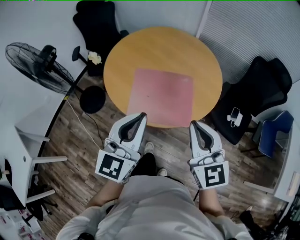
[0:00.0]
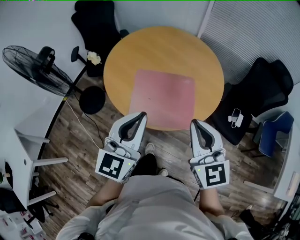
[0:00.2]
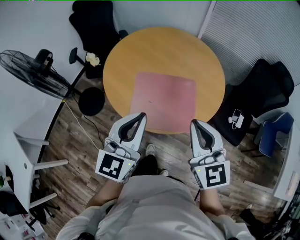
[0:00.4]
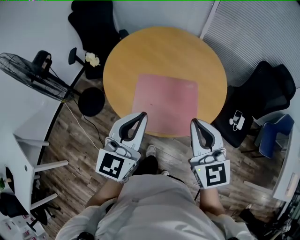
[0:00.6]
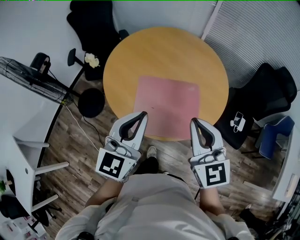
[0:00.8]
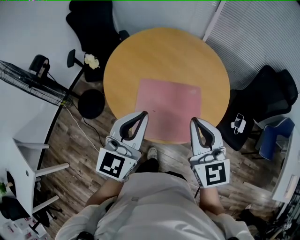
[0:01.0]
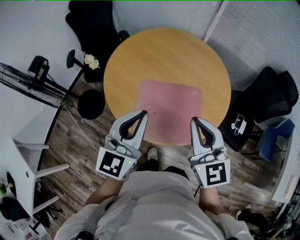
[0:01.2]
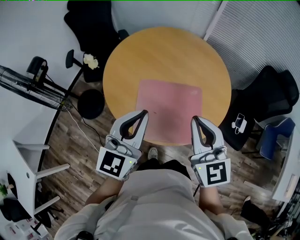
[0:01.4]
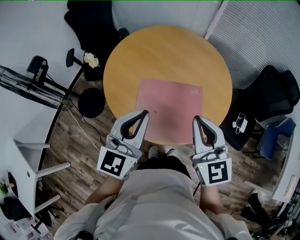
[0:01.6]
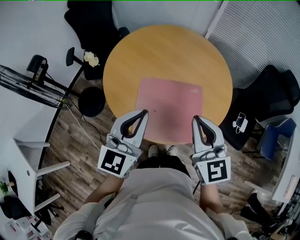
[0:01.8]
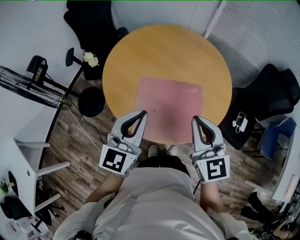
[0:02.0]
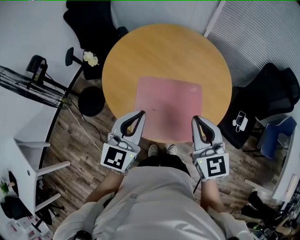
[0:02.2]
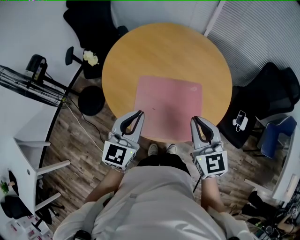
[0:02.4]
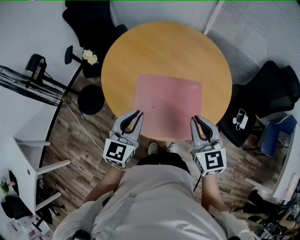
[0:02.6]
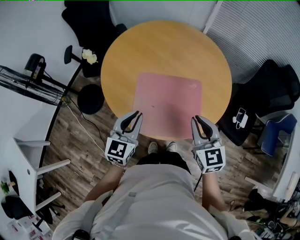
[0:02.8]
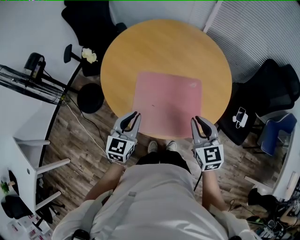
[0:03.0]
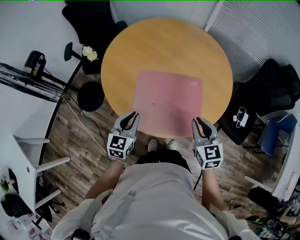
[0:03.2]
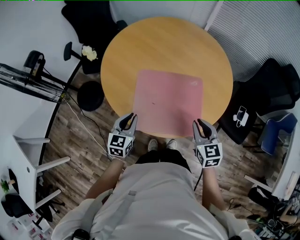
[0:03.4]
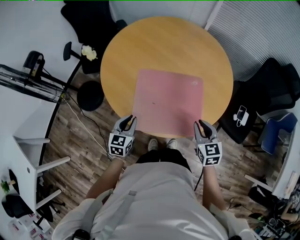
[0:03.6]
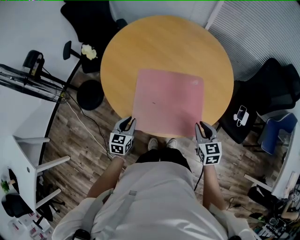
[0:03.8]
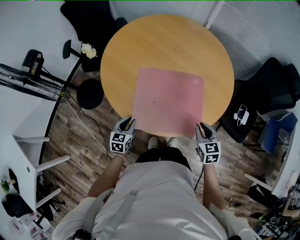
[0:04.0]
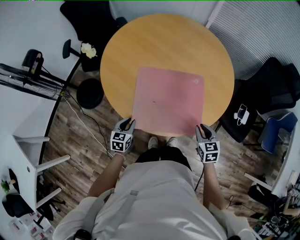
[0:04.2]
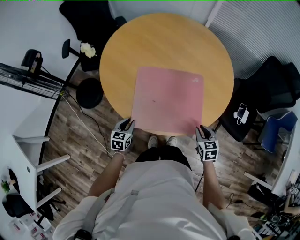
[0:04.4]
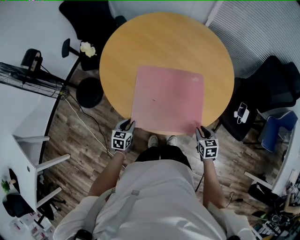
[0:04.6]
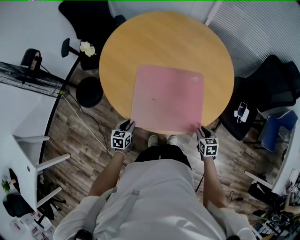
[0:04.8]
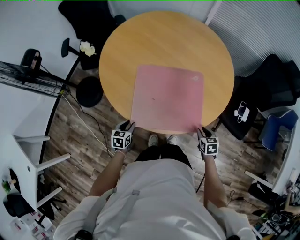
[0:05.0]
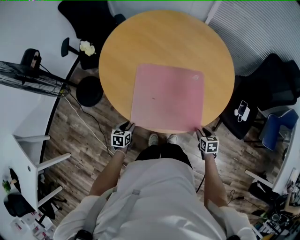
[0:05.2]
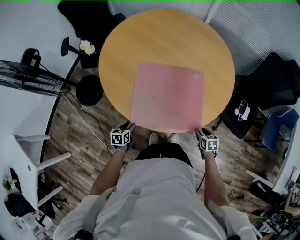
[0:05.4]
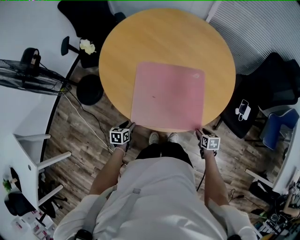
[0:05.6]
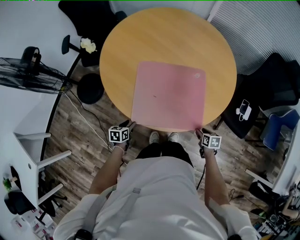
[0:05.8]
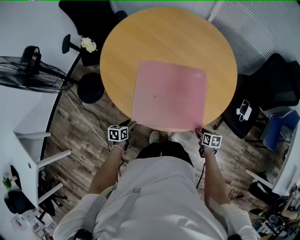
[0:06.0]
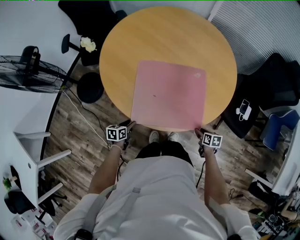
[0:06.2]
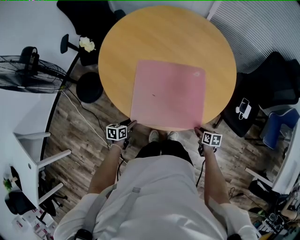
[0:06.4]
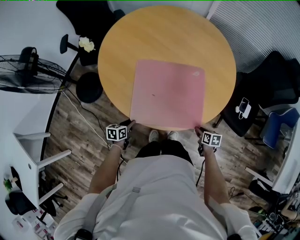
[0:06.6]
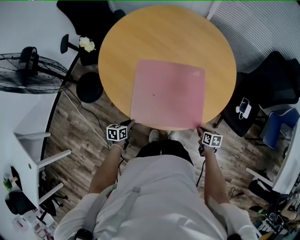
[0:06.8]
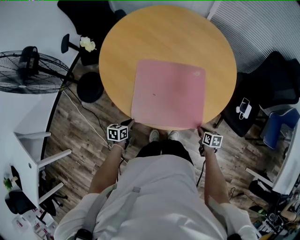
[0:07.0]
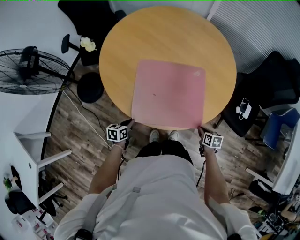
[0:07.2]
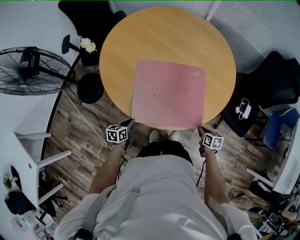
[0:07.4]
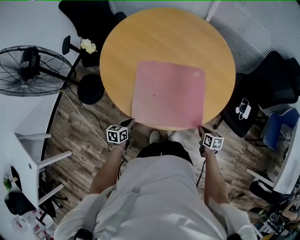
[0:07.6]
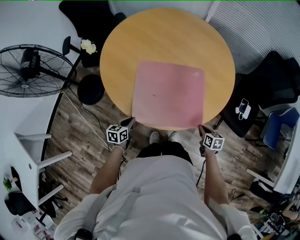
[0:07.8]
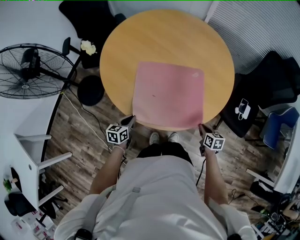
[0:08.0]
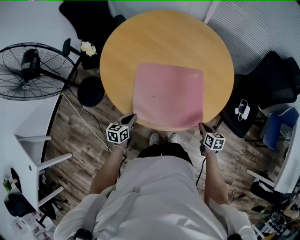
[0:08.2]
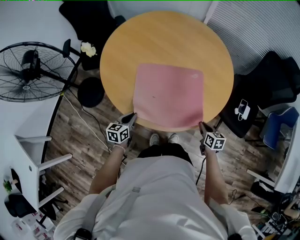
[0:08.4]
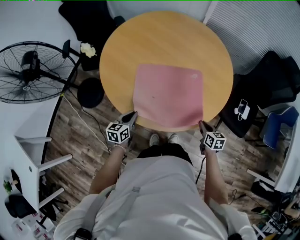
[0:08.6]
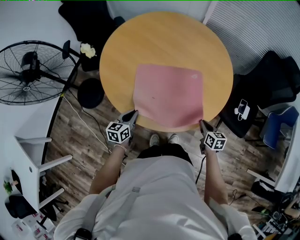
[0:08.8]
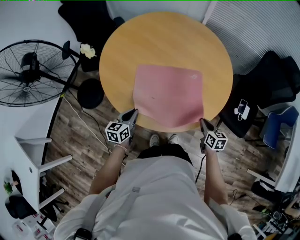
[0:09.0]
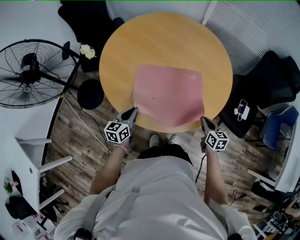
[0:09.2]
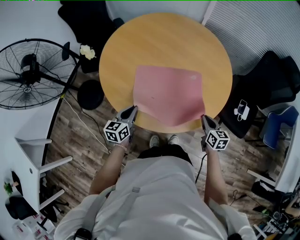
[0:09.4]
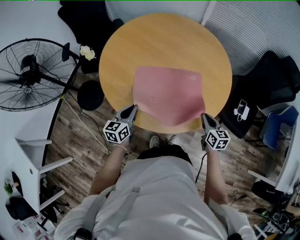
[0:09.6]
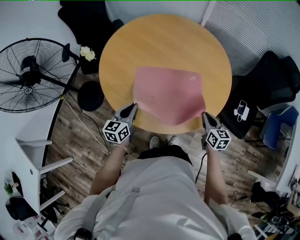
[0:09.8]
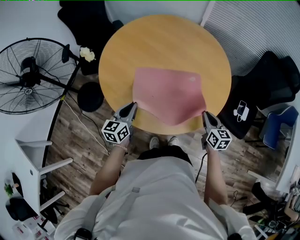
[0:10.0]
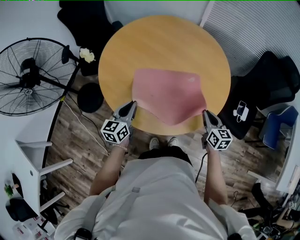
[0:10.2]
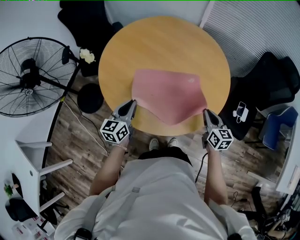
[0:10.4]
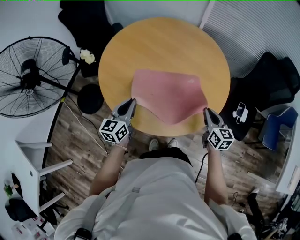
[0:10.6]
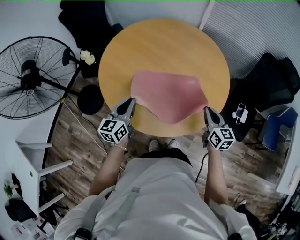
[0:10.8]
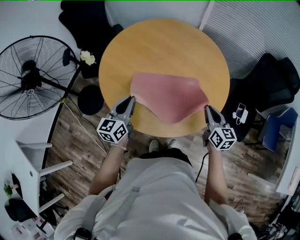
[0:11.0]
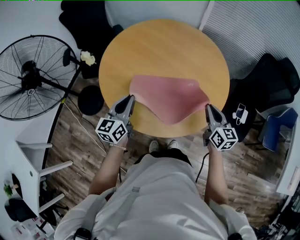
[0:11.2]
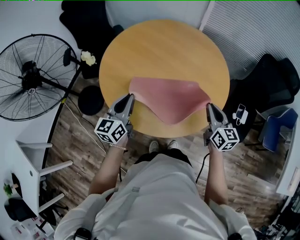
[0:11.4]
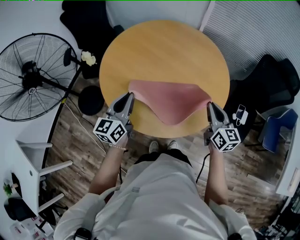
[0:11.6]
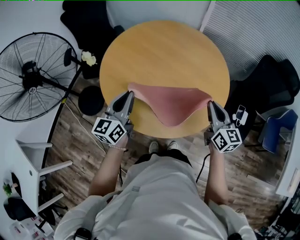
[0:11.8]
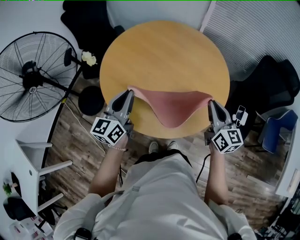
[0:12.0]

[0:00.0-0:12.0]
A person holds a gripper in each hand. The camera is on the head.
0:00.0 to 0:01.6: Both grippers move forward and to the left, some 20 cm.
0:01.6 to 0:03.0: The left gripper travels downward by about 20 cm; the right gripper travels downward and to the right by roughly 15 cm.
0:03.0 to 0:04.4: The left gripper goes roughly 20 cm downward, and turns by about 30 degrees; the right gripper shifts approximately 20 cm downward and to the right, and swivels approximately 20 degrees.
0:04.4 to 0:06.0: The right gripper moves downward and to the right, about 15 cm, turns by roughly 30 degrees, and opens its fingers. Meanwhile the left gripper moves downward, about 10 cm, turns by roughly 20 degrees, and opens up.
0:06.0 to 0:07.6: The right gripper closes its fingers, while the left gripper closes.
0:07.6 to 0:09.0: The grippers both shift upward and forward by approximately 10 cm.
0:09.0 to 0:10.4: The left gripper is displaced upward by some 10 cm. The right gripper is displaced upward and forward by approximately 10 cm.
0:10.4 to 0:12.0: The grippers both shift upward by roughly 15 cm.

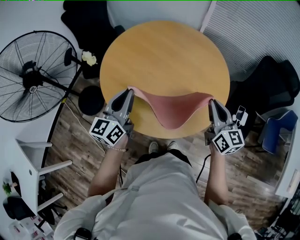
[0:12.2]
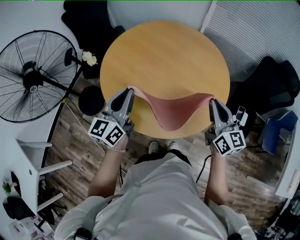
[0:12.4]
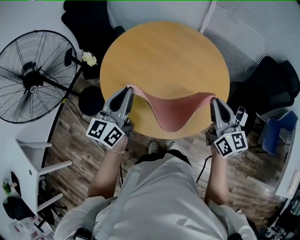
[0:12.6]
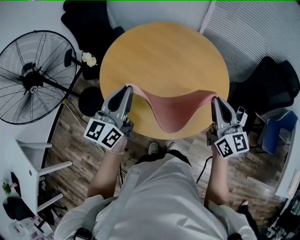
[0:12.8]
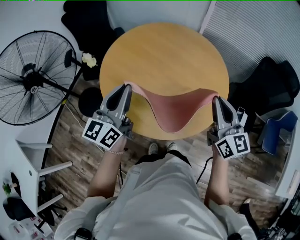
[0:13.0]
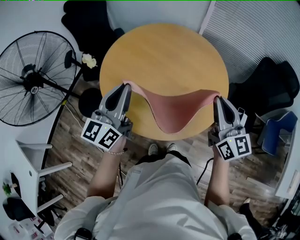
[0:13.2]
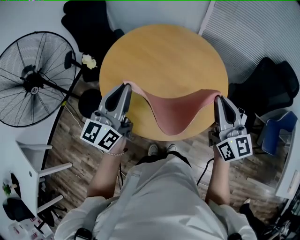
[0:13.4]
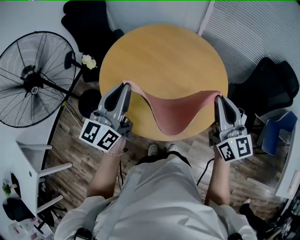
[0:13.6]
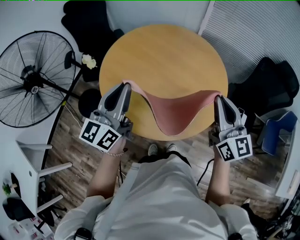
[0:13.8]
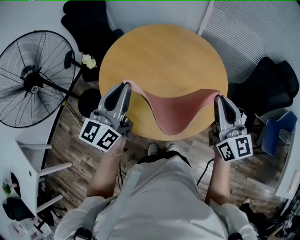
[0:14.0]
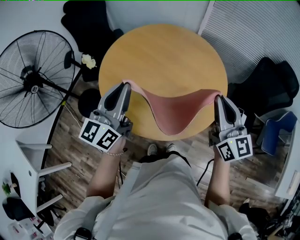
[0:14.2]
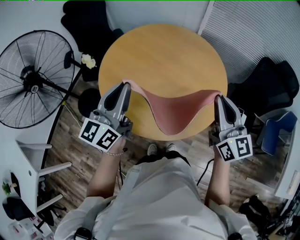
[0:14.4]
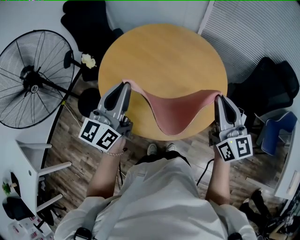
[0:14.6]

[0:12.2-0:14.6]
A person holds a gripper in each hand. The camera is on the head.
0:12.2 to 0:13.4: Both grippers move upward, roughly 10 cm.
0:13.4 to 0:14.6: The grippers move only a little.

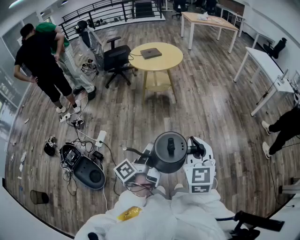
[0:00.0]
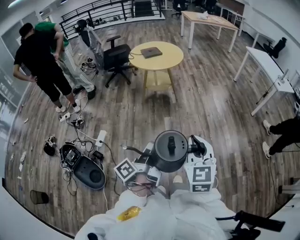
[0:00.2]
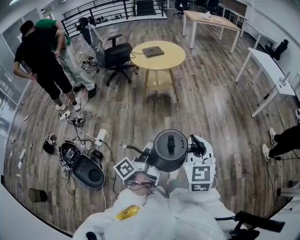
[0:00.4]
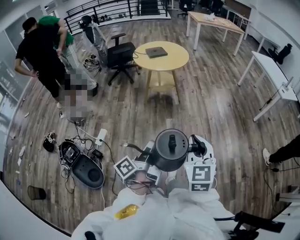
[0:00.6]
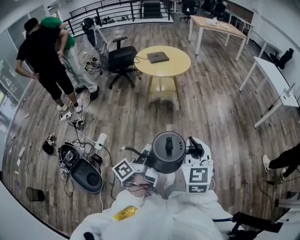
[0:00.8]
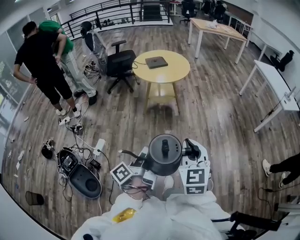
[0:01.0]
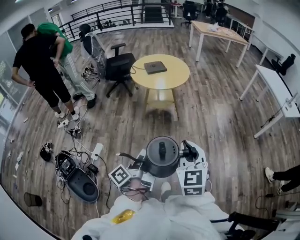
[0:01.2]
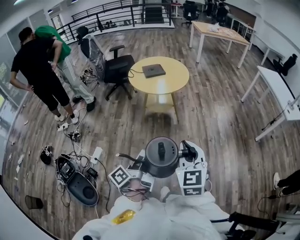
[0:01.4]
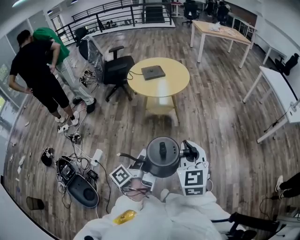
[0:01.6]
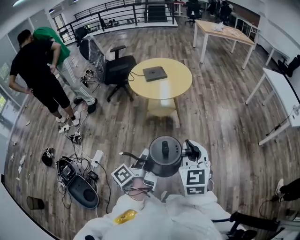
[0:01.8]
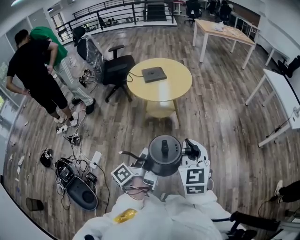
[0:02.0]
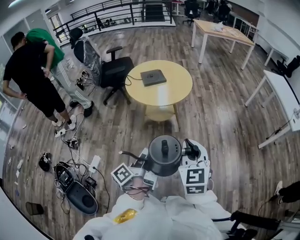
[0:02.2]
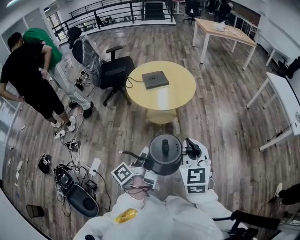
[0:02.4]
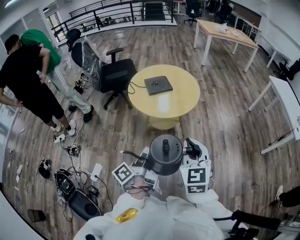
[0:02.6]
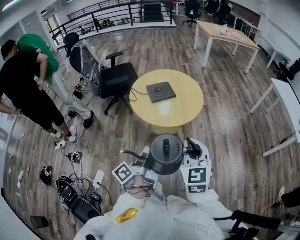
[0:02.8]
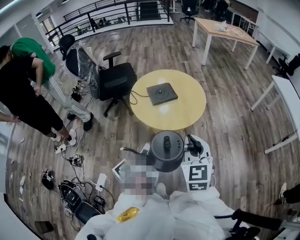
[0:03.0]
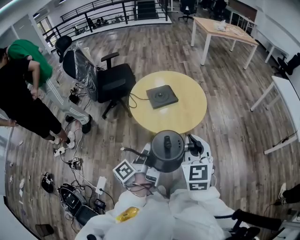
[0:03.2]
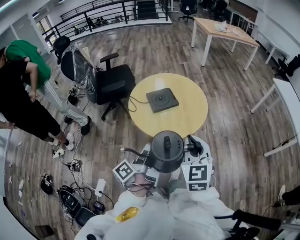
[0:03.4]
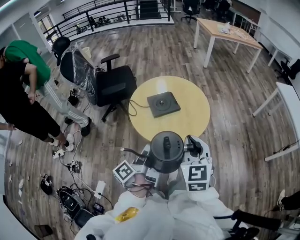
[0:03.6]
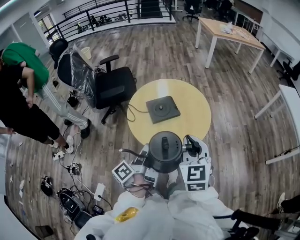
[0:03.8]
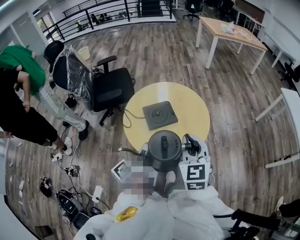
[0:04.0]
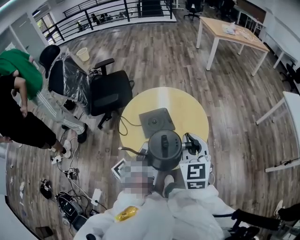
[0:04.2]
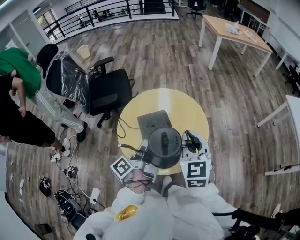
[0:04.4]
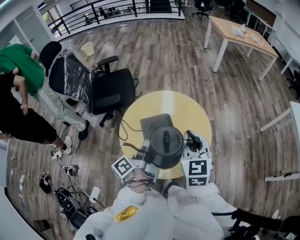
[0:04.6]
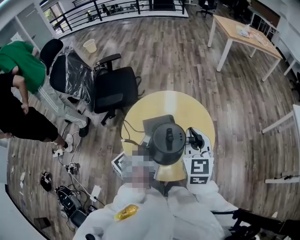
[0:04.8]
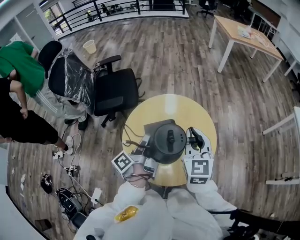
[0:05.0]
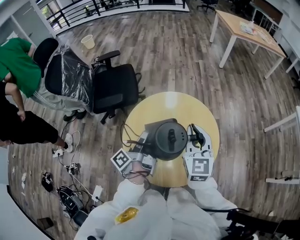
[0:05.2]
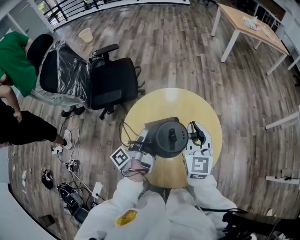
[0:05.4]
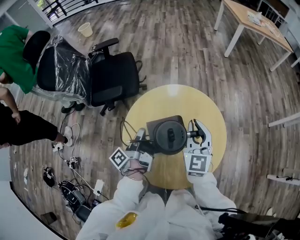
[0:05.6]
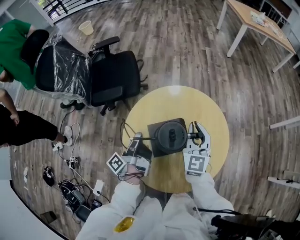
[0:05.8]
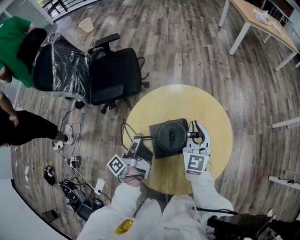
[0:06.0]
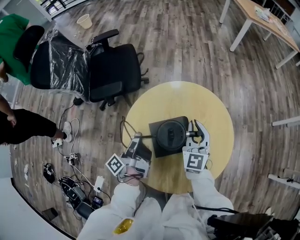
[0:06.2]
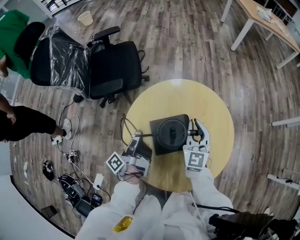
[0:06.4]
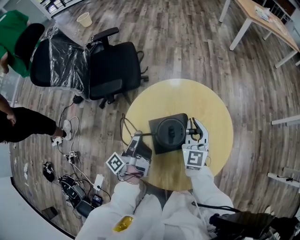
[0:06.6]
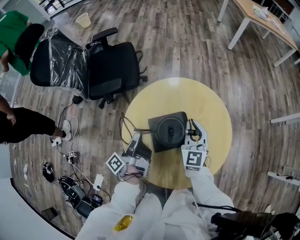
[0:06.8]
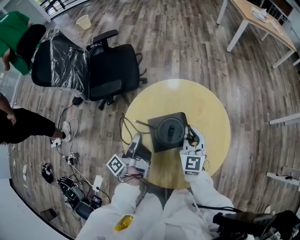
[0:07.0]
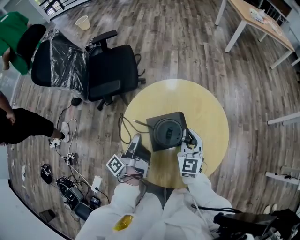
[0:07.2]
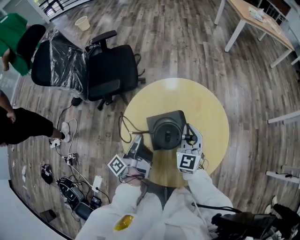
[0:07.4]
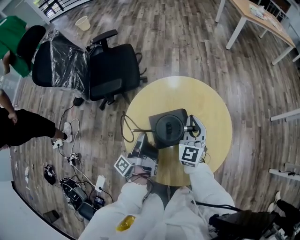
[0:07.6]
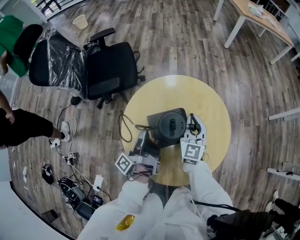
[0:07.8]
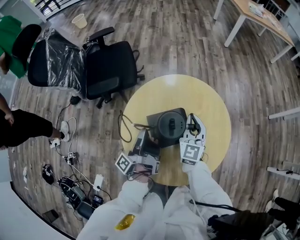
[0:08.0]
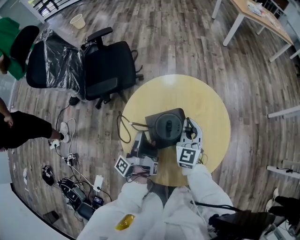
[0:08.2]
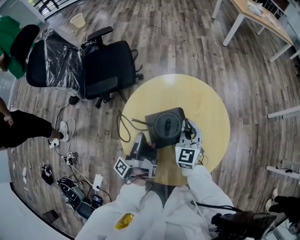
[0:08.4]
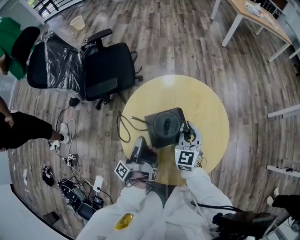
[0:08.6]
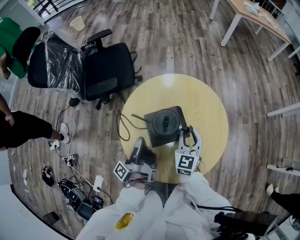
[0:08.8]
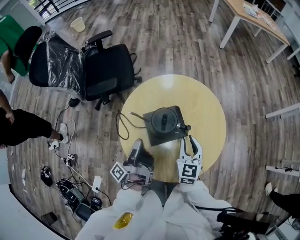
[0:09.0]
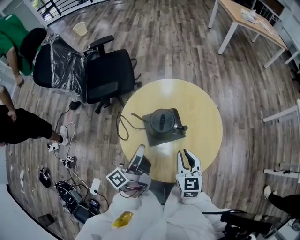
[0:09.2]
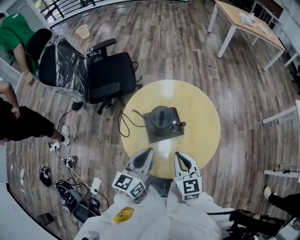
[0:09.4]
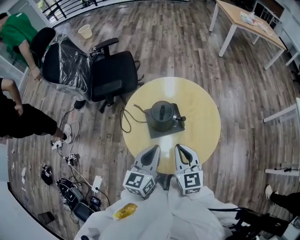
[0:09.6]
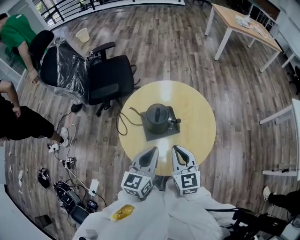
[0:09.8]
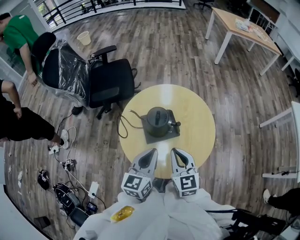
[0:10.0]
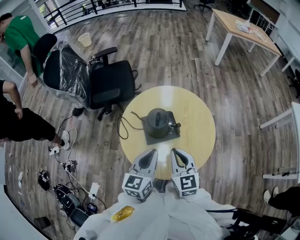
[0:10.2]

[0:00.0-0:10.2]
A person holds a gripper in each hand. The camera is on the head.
0:00.0 to 0:01.4: The right gripper ends up roughly 25 cm from where it was.
0:01.4 to 0:03.0: The right gripper moves some 40 cm.
0:03.0 to 0:04.4: The right gripper changes place by some 35 cm.
0:04.4 to 0:05.8: The right gripper changes place by about 25 cm.
0:05.8 to 0:07.2: The right gripper shifts about 5 cm downward.
0:07.2 to 0:08.8: The right gripper opens.
0:08.8 to 0:10.2: The right gripper changes place by roughly 20 cm, turns by about 20 degrees, and closes its fingers.
